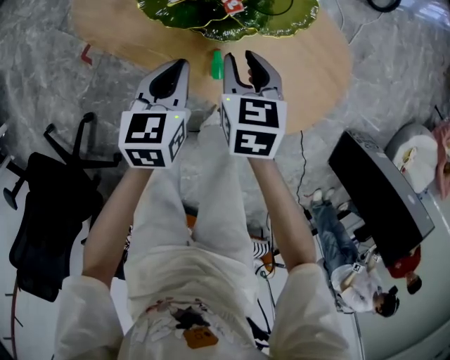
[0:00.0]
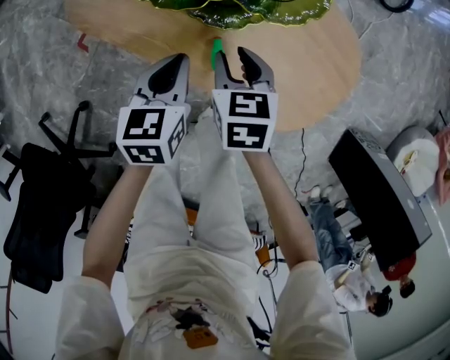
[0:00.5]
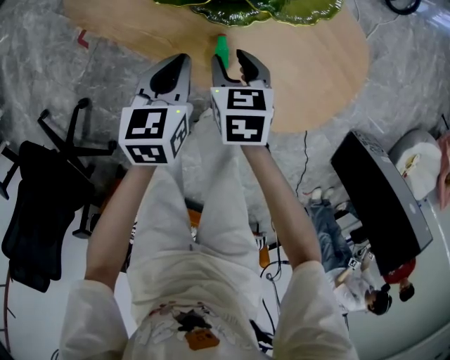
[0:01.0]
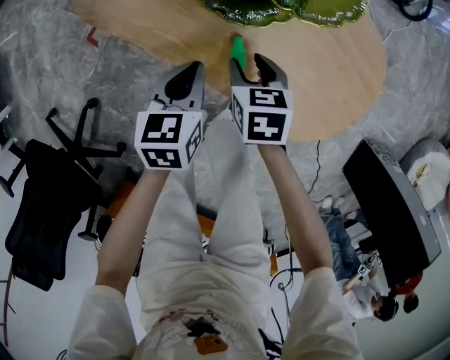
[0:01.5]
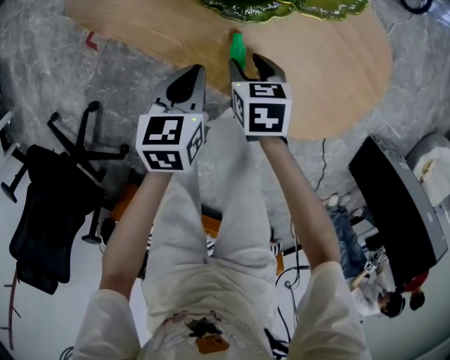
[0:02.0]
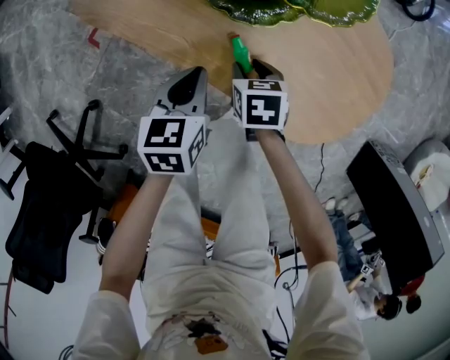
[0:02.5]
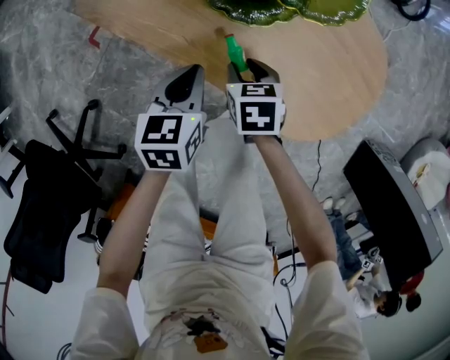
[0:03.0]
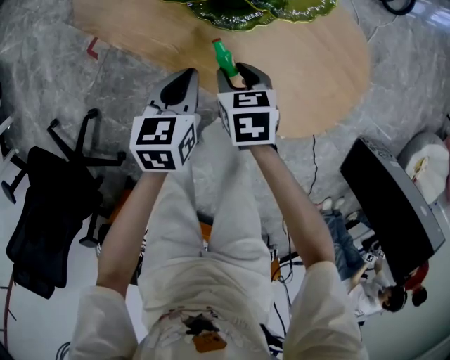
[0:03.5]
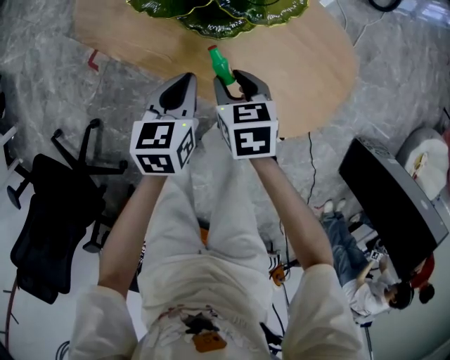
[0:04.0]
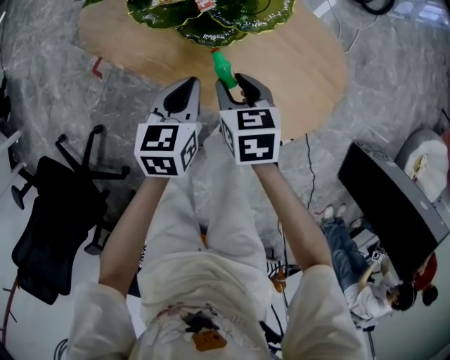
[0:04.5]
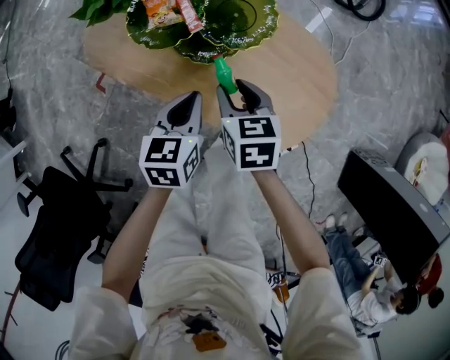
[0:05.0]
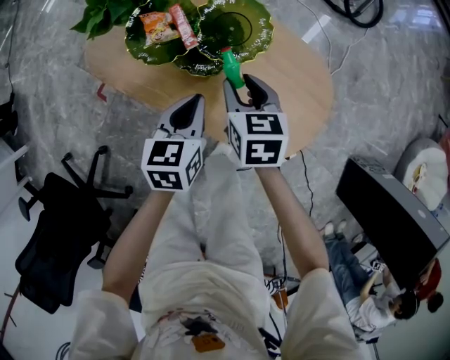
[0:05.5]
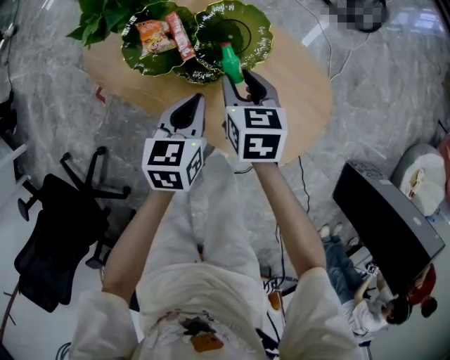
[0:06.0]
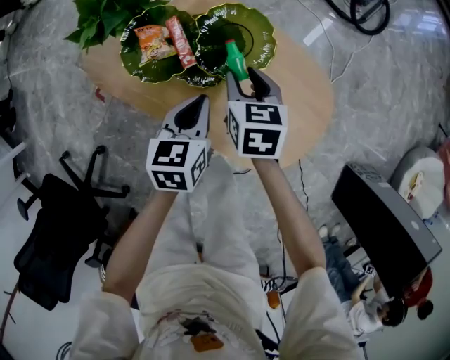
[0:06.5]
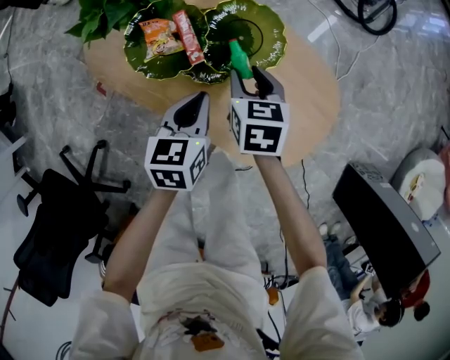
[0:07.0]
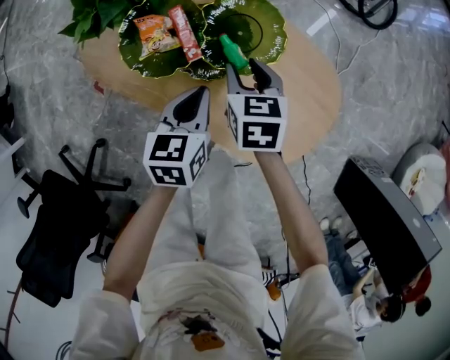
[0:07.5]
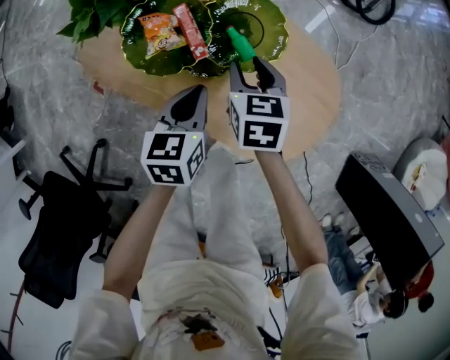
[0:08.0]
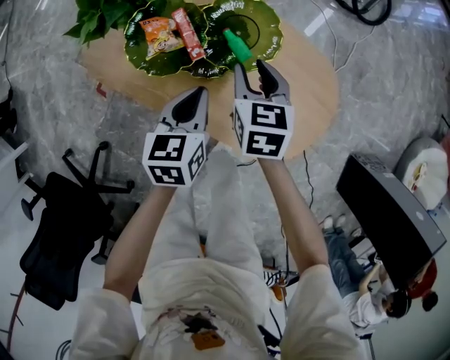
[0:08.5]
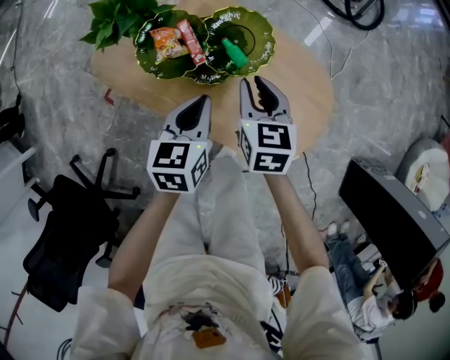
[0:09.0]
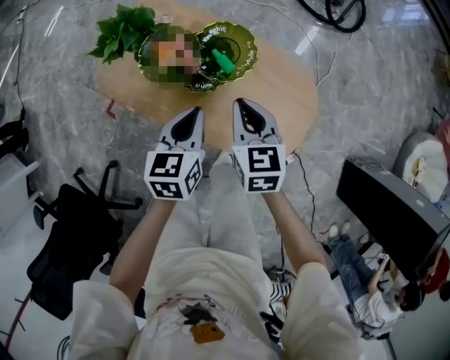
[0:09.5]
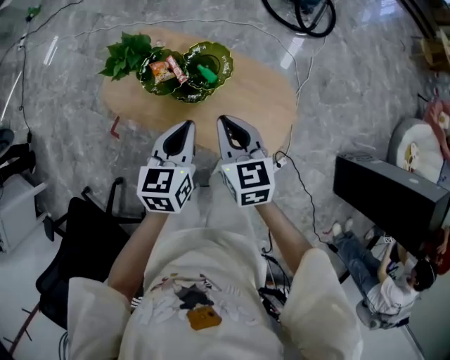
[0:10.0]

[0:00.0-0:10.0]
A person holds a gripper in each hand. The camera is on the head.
0:00.0 to 0:02.0: The right gripper is displaced downward by approximately 15 cm. Meanwhile the left gripper goes about 15 cm downward and backward.
0:02.0 to 0:04.0: Both grippers move upward, about 10 cm.
0:04.0 to 0:06.0: Both grippers travel together forward, upward and to the right, roughly 15 cm.
0:06.0 to 0:08.0: The grippers move only a little.
0:08.0 to 0:10.0: The right gripper moves upward and backward, roughly 30 cm, and closes its fingers. Meanwhile the left gripper travels upward by about 25 cm.

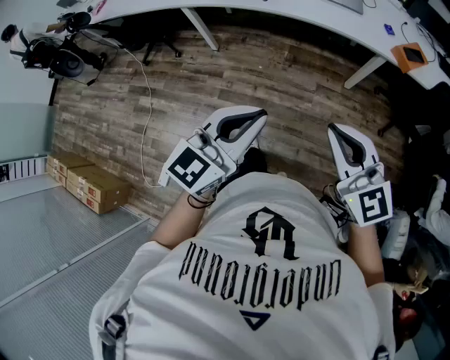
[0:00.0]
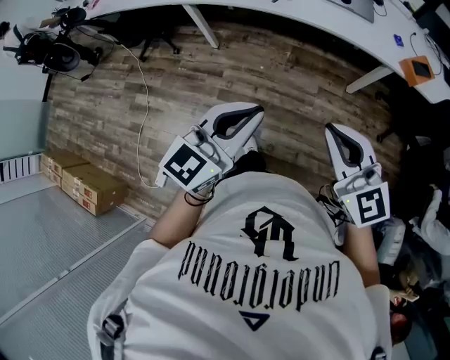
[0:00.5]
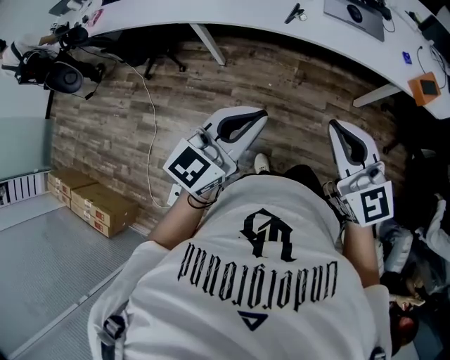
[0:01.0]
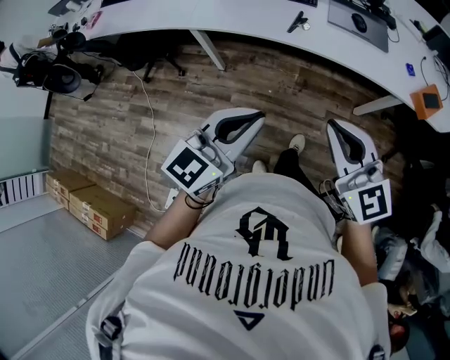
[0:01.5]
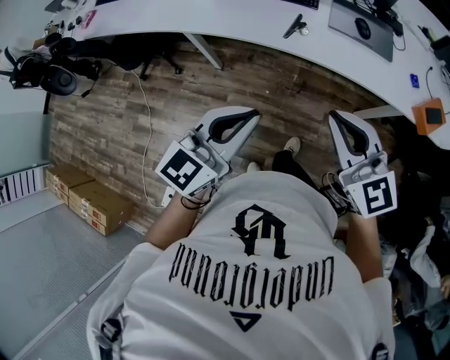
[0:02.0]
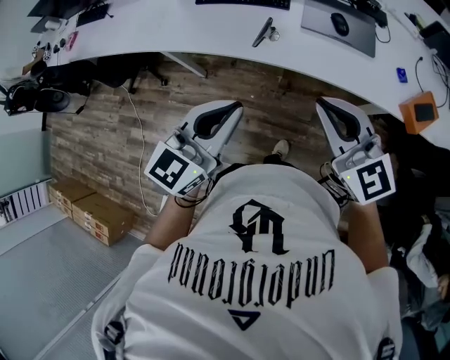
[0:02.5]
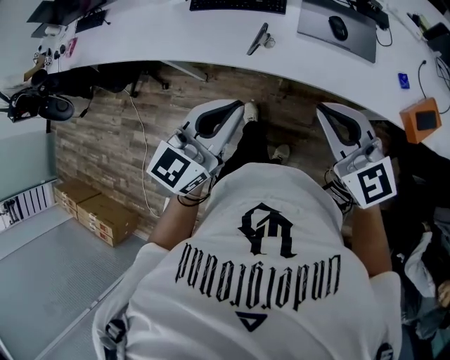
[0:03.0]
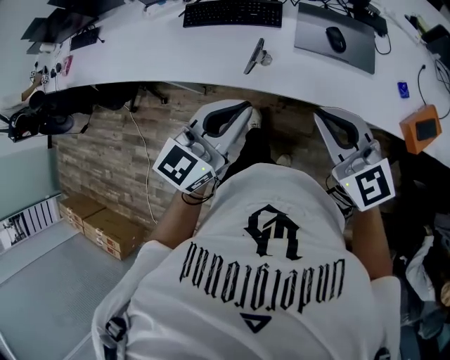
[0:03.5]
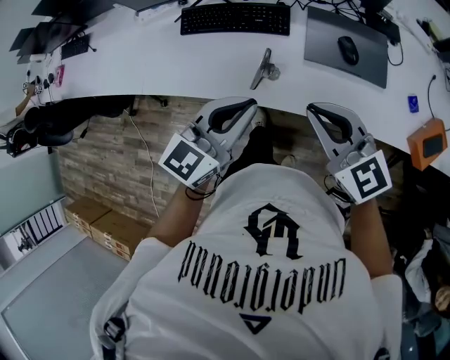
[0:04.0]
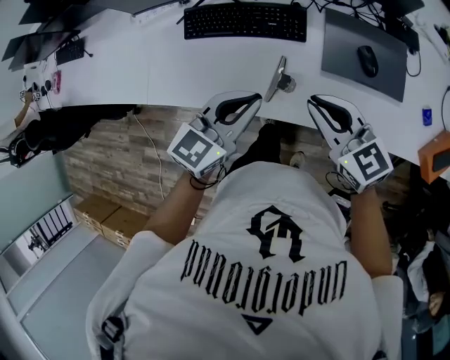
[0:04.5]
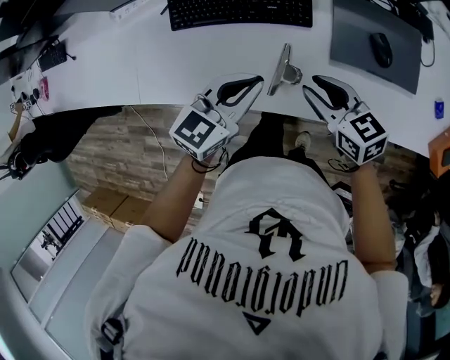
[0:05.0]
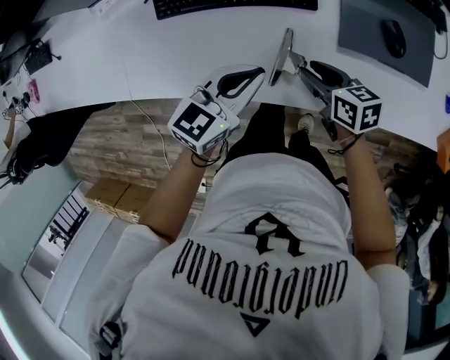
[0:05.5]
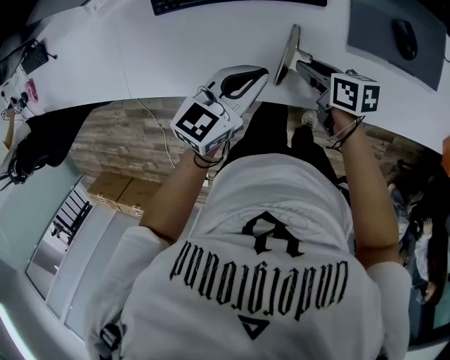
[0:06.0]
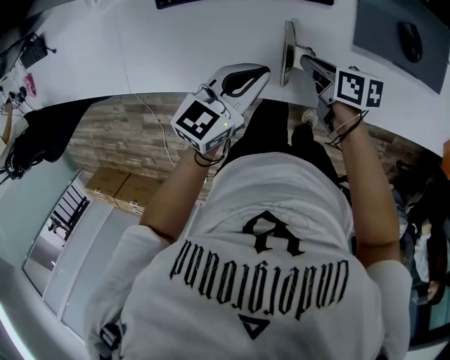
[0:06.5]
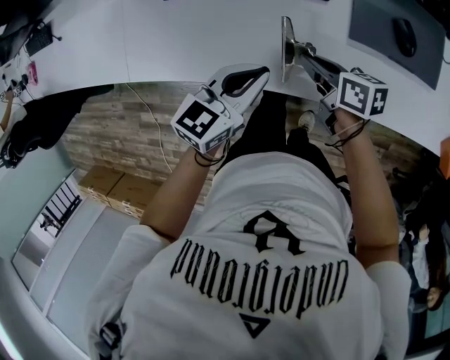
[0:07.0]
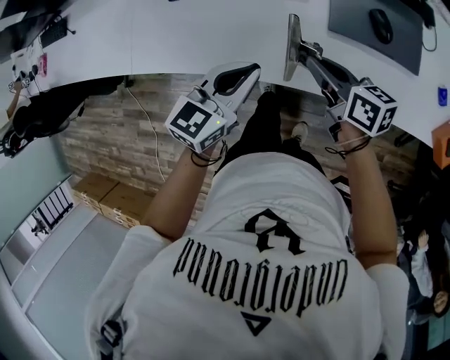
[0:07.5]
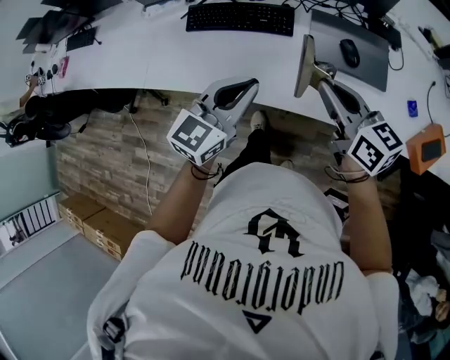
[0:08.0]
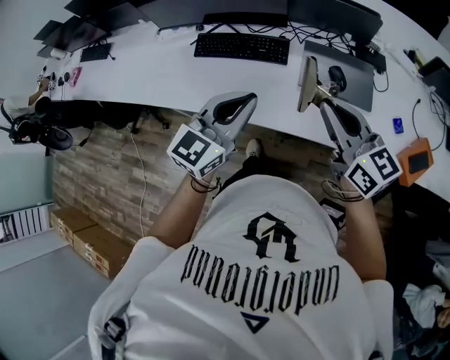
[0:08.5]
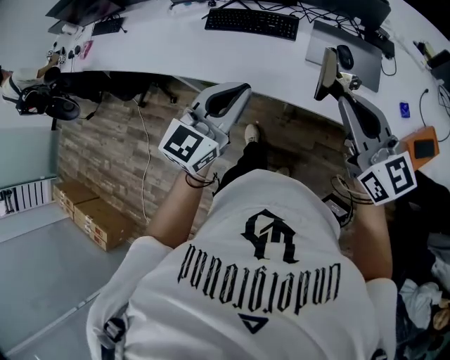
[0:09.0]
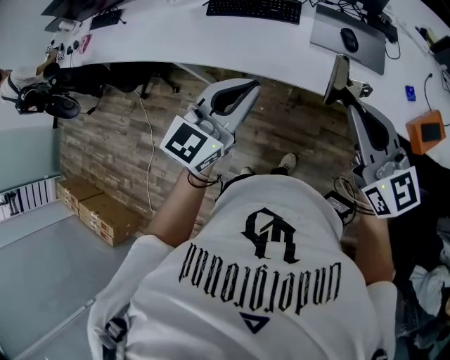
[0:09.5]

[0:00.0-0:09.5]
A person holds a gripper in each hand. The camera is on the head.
0:00.0 to 0:02.0: The right gripper shifts about 35 cm forward, while the left gripper heads forward and to the left, covering about 35 cm.
0:02.0 to 0:04.0: The grippers both shift forward by some 35 cm.
0:04.0 to 0:05.5: The grippers both shift downward and forward by about 30 cm. The left gripper changes its angle by some 20 degrees, while the right gripper rolls clockwise, seen from behind, by roughly 50 degrees, and opens its fingers.
0:05.5 to 0:07.5: The right gripper moves upward and backward, roughly 10 cm, and closes; the left gripper moves backward, roughly 10 cm.
0:07.5 to 0:09.5: The two grippers go some 35 cm backward and upward. The right gripper rolls counterclockwise, seen from behind, by some 40 degrees, while the left gripper rotates roughly 20 degrees.

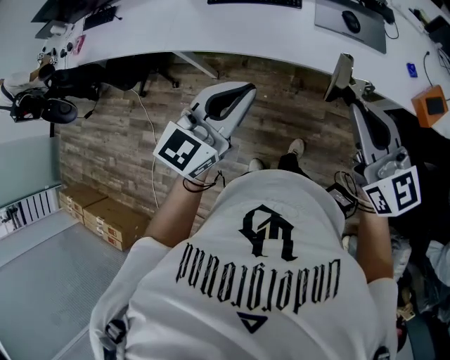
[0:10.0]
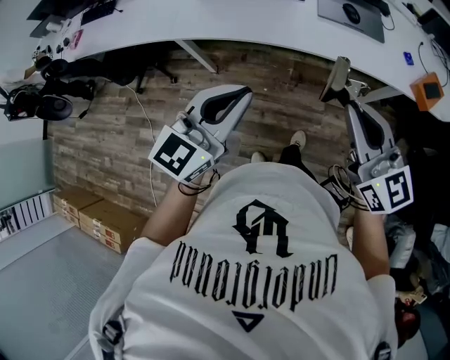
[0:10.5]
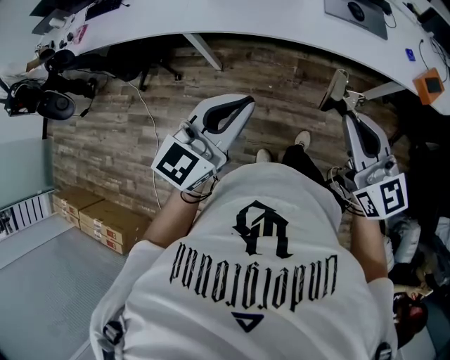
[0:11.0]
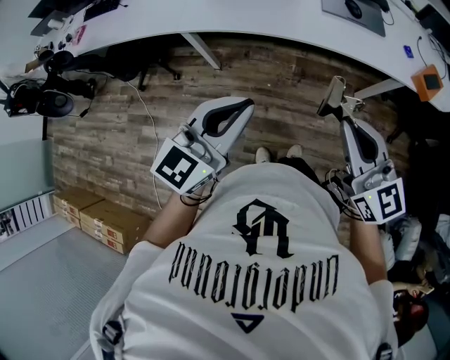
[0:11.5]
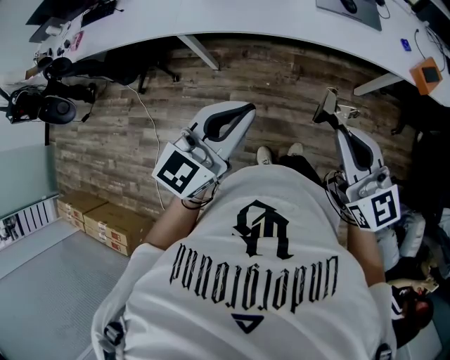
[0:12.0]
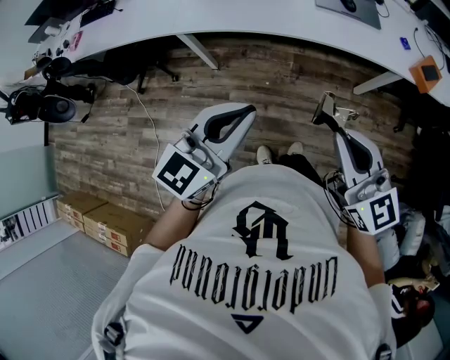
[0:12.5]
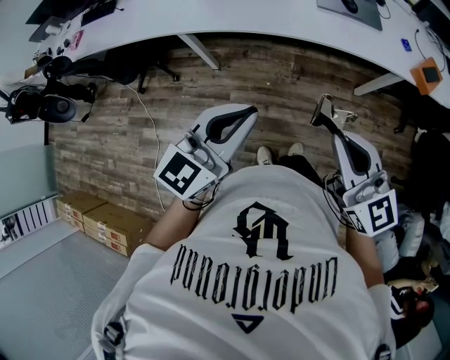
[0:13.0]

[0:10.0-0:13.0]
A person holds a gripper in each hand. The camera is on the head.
0:10.0 to 0:11.5: The two grippers go some 20 cm backward and to the left.
0:11.5 to 0:13.0: There are only small adjustments of the grippers.

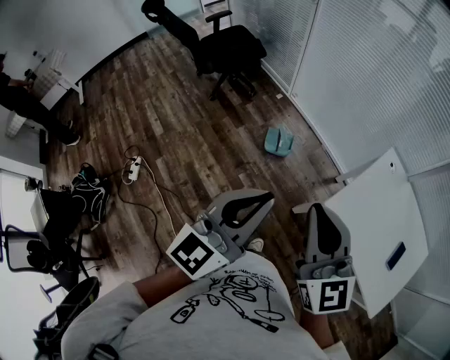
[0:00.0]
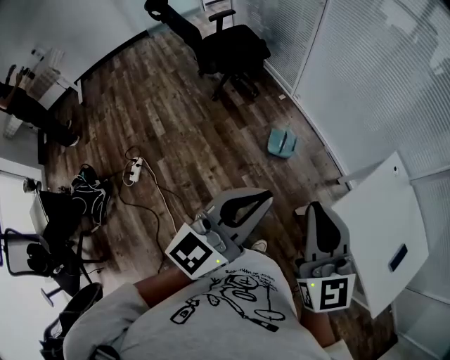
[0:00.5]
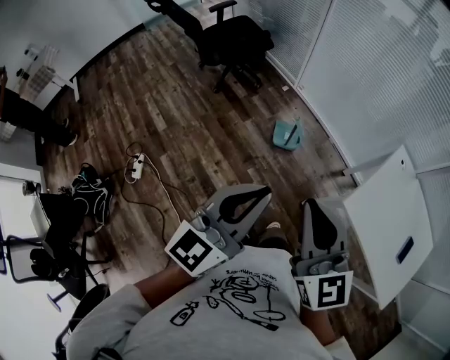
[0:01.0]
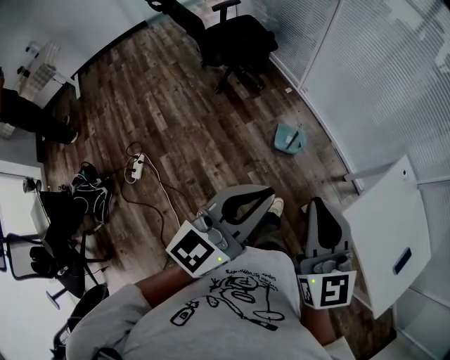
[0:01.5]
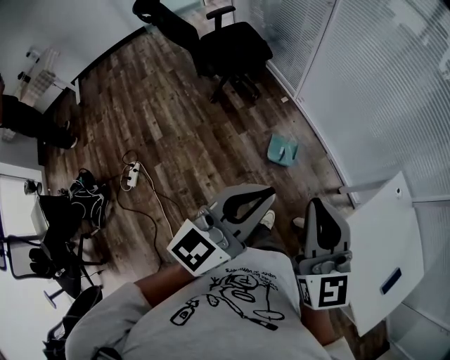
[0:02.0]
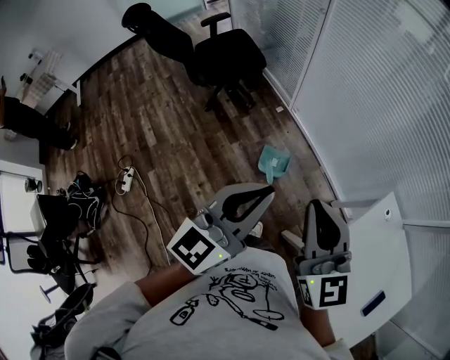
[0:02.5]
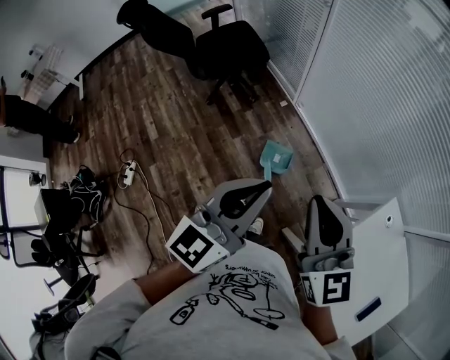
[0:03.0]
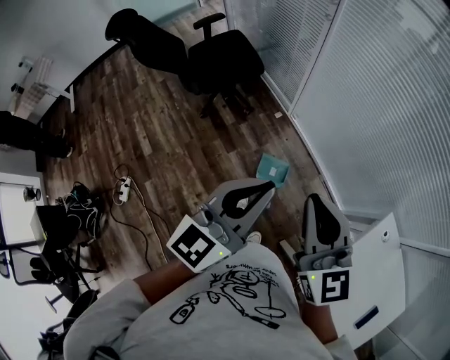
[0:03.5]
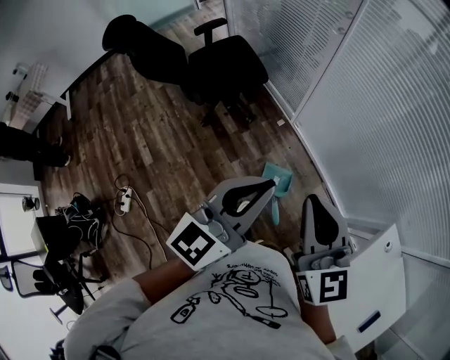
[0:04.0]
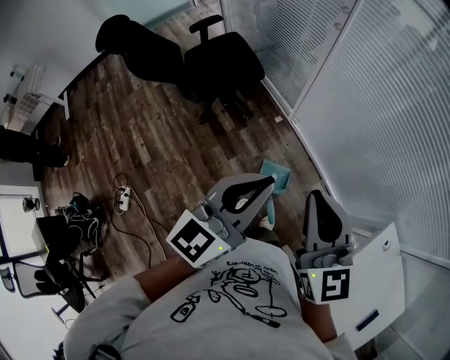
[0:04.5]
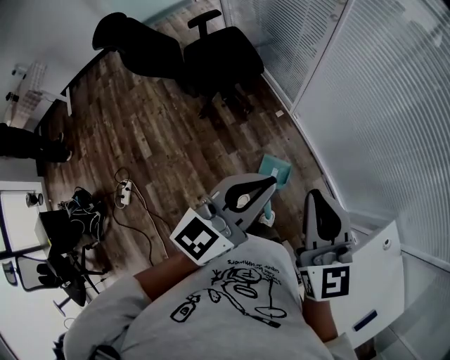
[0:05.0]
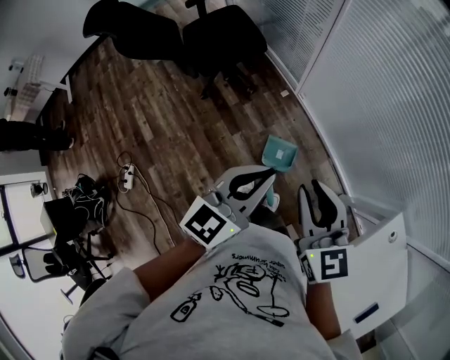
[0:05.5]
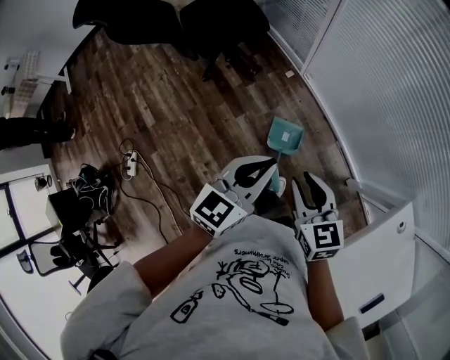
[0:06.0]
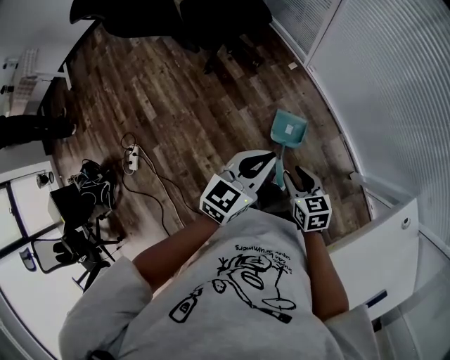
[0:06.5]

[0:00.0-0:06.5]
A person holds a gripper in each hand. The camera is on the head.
0:00.0 to 0:02.0: The two grippers go approximately 15 cm forward.
0:02.0 to 0:04.5: The two grippers go some 35 cm forward.
0:04.5 to 0:06.5: The left gripper goes approximately 25 cm downward, and turns by roughly 30 degrees. The right gripper goes roughly 40 cm downward, points its fingers about 40 degrees further downward, and opens.
